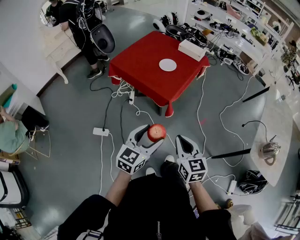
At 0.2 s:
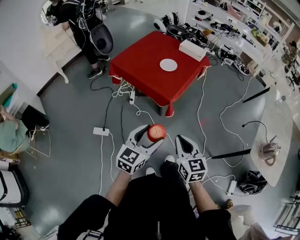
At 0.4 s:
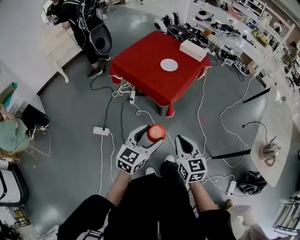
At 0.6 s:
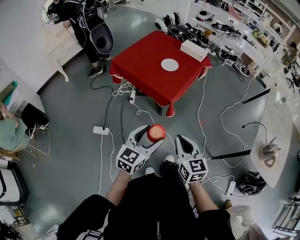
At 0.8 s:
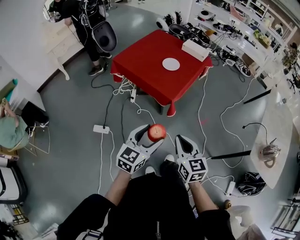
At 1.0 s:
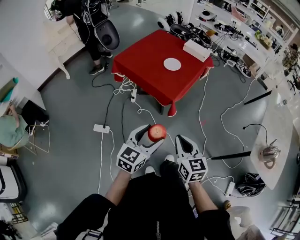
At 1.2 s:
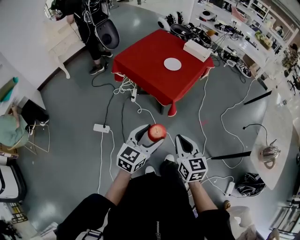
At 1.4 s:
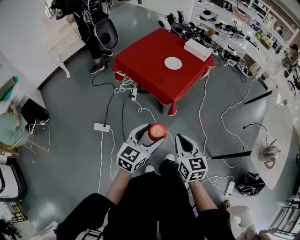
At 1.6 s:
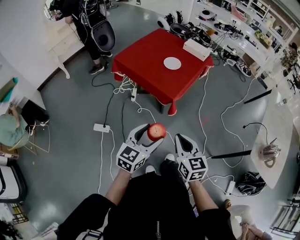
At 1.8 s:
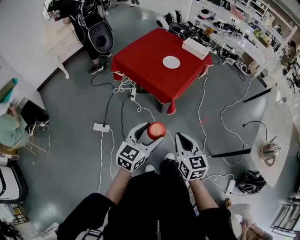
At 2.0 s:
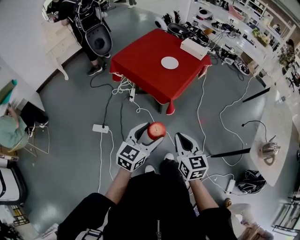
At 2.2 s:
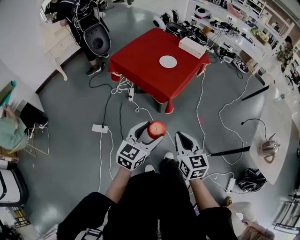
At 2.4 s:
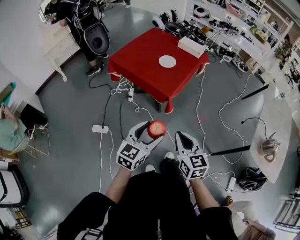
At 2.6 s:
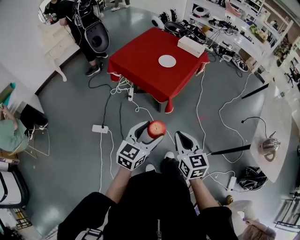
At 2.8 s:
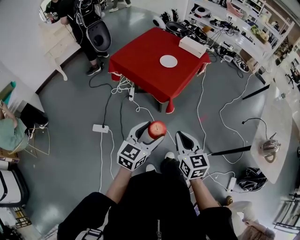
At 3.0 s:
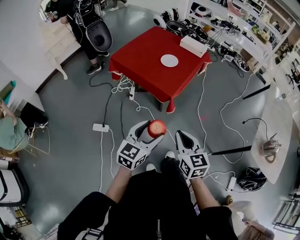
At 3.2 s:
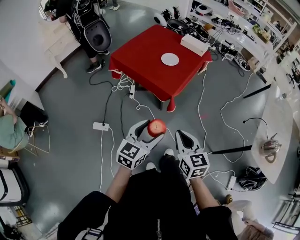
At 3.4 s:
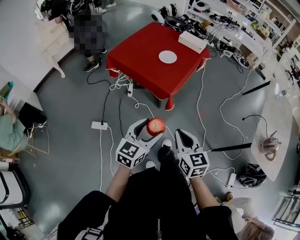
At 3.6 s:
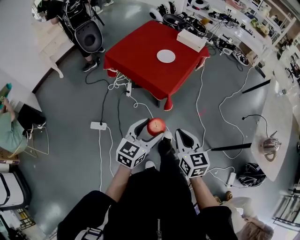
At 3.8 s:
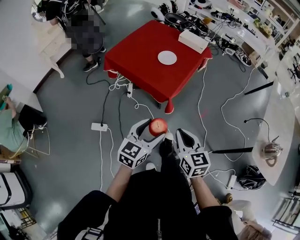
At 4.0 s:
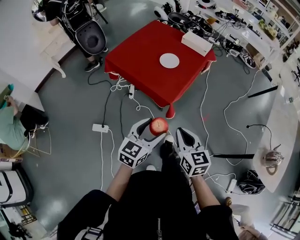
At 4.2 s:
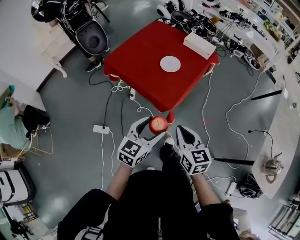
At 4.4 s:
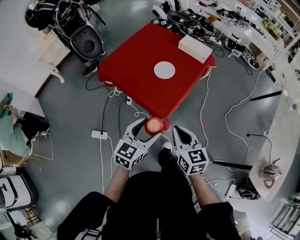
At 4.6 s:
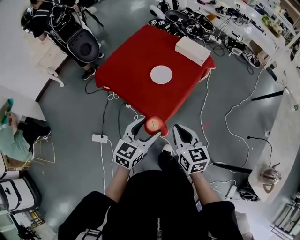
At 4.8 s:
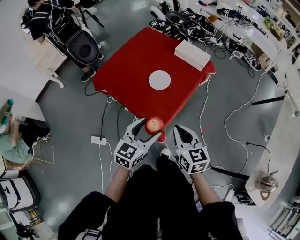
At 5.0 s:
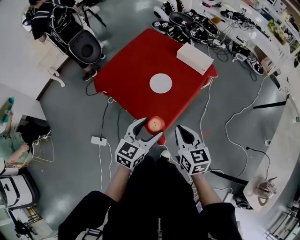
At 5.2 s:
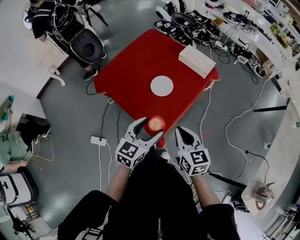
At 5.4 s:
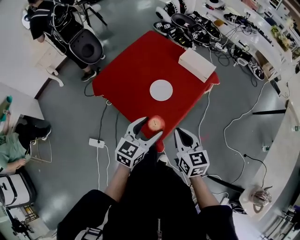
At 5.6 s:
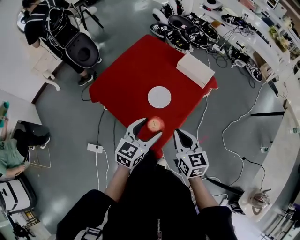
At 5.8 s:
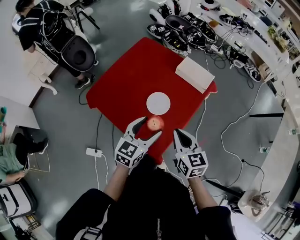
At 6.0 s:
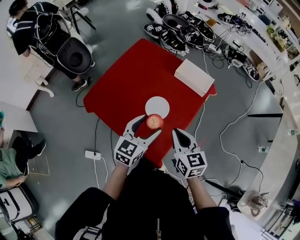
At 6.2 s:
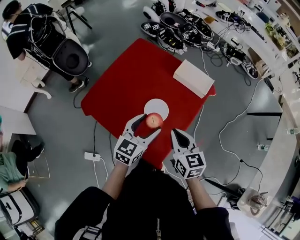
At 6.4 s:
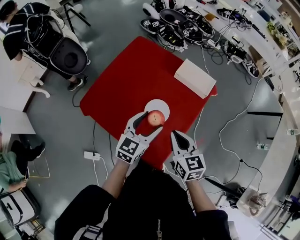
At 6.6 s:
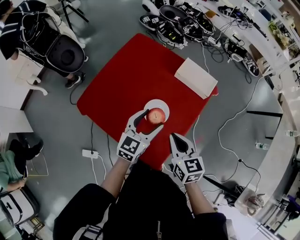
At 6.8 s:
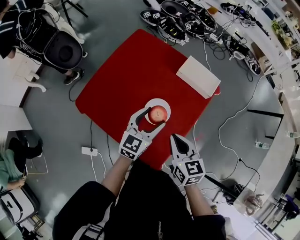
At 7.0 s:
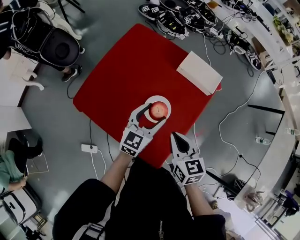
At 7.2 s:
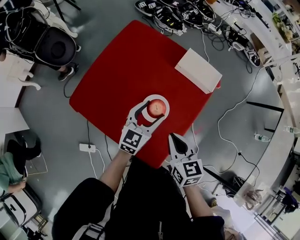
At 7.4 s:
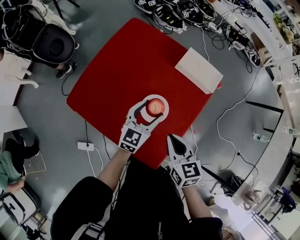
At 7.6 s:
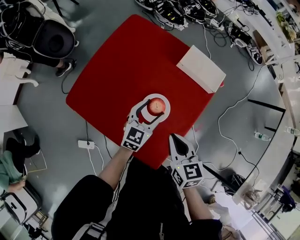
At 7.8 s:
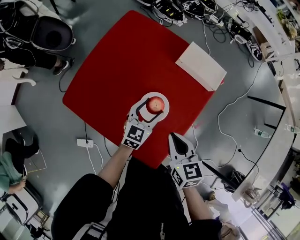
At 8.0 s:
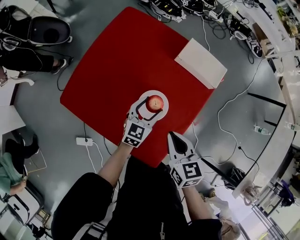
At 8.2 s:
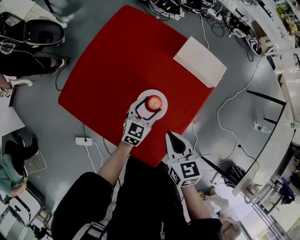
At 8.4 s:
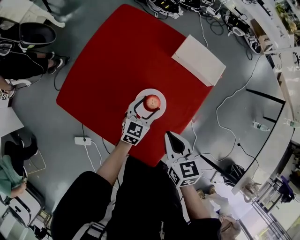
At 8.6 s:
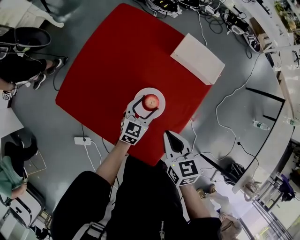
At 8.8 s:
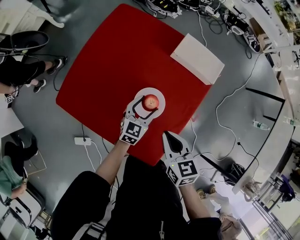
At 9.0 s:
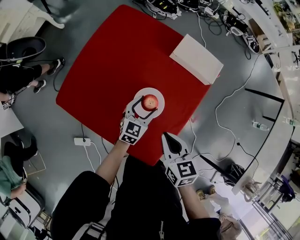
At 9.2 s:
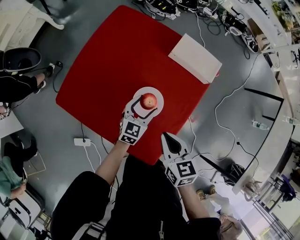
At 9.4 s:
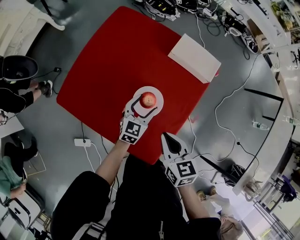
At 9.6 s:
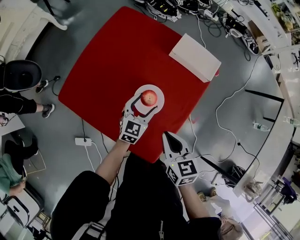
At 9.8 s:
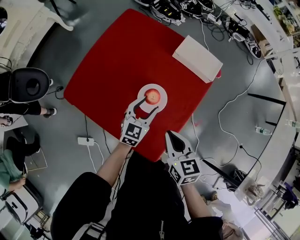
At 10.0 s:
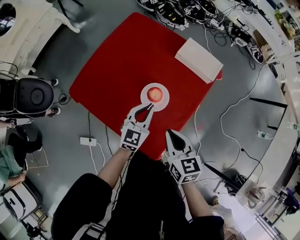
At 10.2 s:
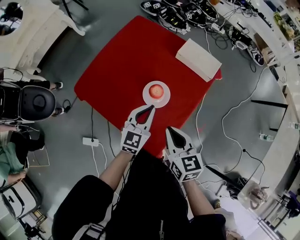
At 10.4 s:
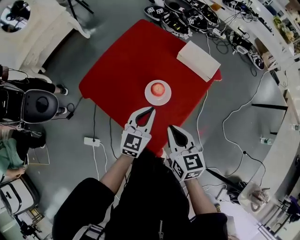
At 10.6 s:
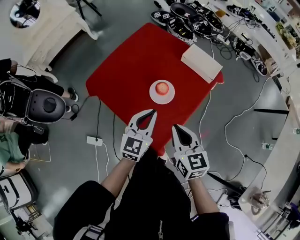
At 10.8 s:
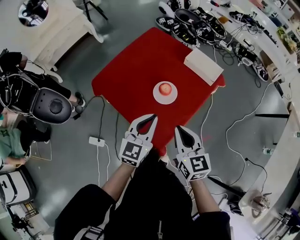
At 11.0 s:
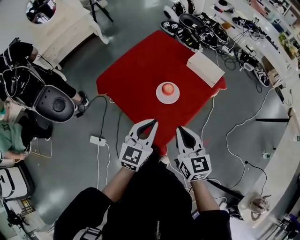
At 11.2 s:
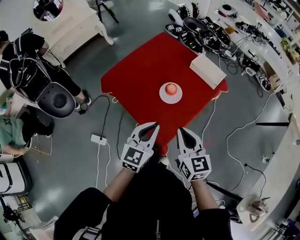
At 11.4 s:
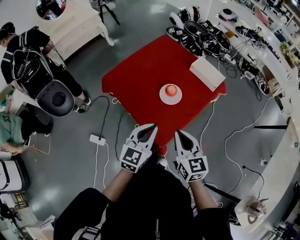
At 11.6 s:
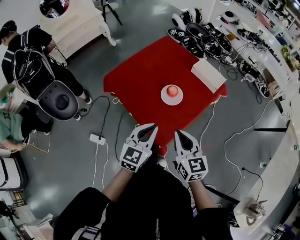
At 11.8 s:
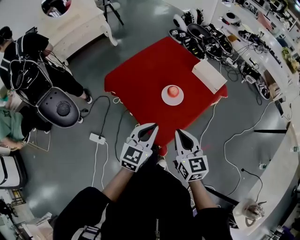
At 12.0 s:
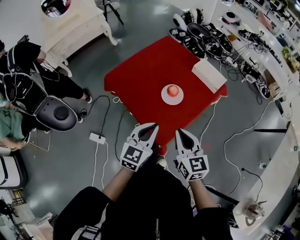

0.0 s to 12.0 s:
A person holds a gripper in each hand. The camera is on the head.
0.0 to 3.0 s: The grippers make only small movements.
3.0 to 4.4 s: Both grippers travel together forward, approximately 25 cm.
4.4 to 6.0 s: Both grippers travel together forward, about 30 cm.
6.0 to 7.6 s: The left gripper heads forward and downward, covering about 20 cm. Meanwhile the right gripper is displaced downward and forward by roughly 10 cm.
7.6 to 9.0 s: The left gripper heads downward, covering roughly 10 cm.
9.0 to 10.4 s: The left gripper shifts roughly 20 cm upward and backward, and closes up. The right gripper is displaced backward and upward by about 15 cm.
10.4 to 12.0 s: The two grippers go roughly 15 cm backward and upward.

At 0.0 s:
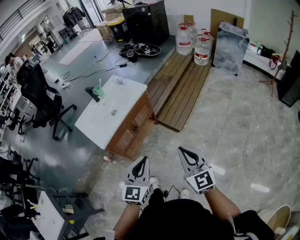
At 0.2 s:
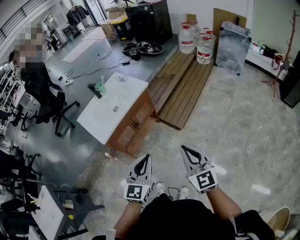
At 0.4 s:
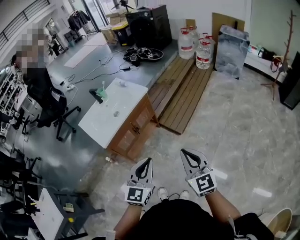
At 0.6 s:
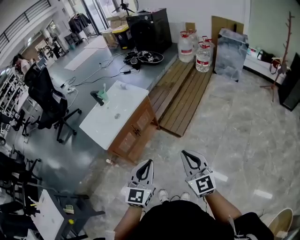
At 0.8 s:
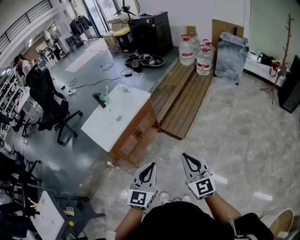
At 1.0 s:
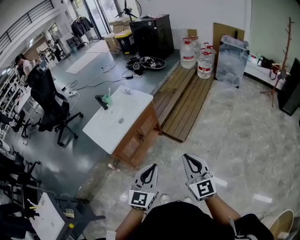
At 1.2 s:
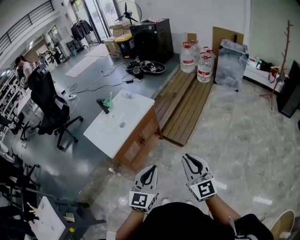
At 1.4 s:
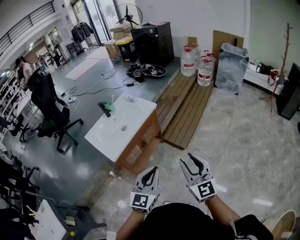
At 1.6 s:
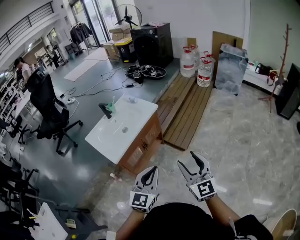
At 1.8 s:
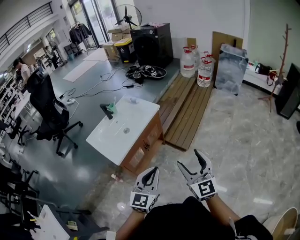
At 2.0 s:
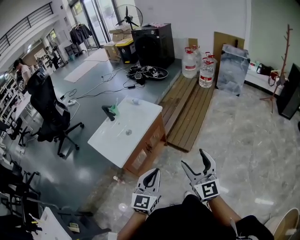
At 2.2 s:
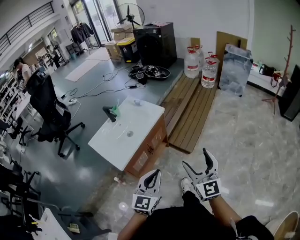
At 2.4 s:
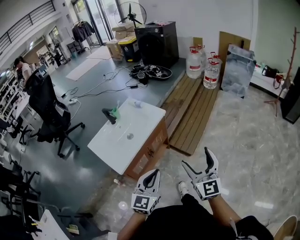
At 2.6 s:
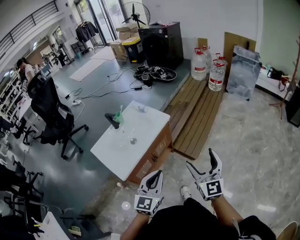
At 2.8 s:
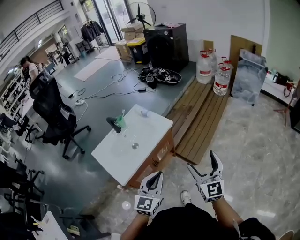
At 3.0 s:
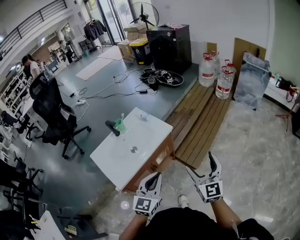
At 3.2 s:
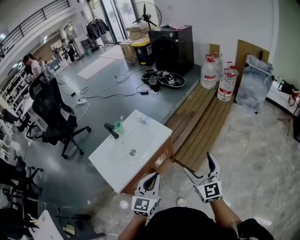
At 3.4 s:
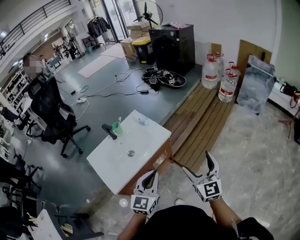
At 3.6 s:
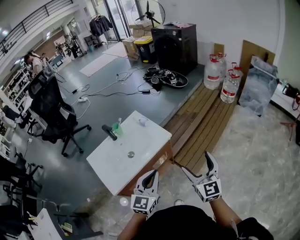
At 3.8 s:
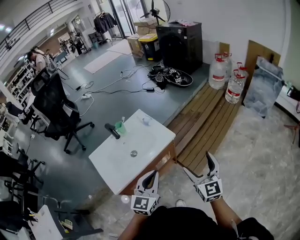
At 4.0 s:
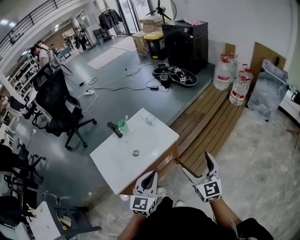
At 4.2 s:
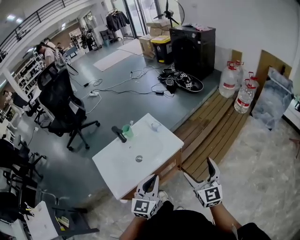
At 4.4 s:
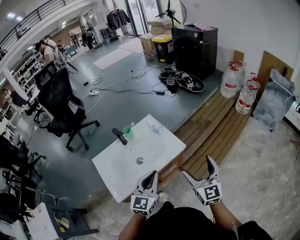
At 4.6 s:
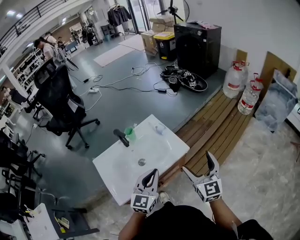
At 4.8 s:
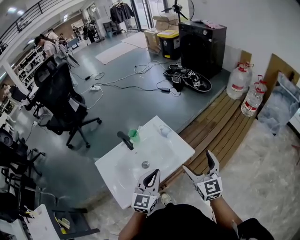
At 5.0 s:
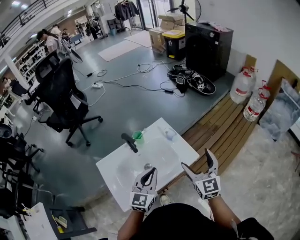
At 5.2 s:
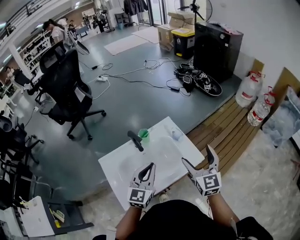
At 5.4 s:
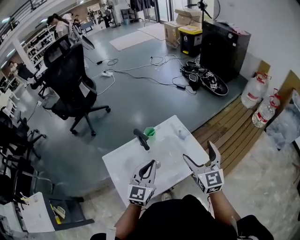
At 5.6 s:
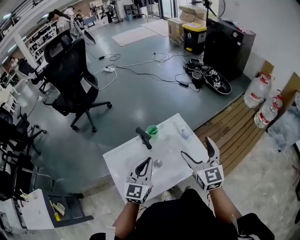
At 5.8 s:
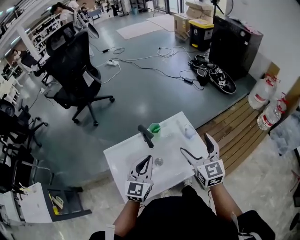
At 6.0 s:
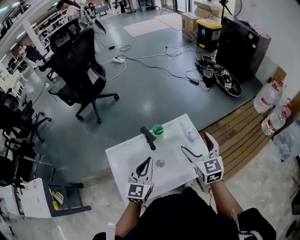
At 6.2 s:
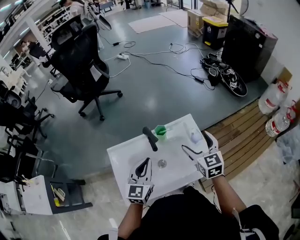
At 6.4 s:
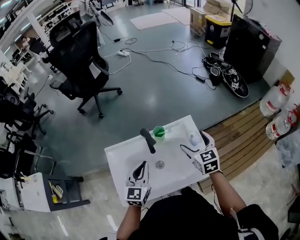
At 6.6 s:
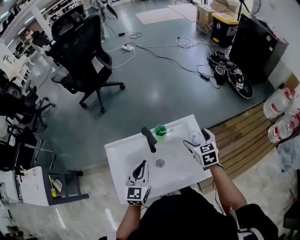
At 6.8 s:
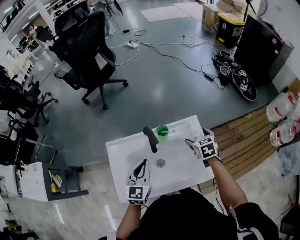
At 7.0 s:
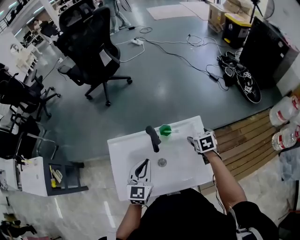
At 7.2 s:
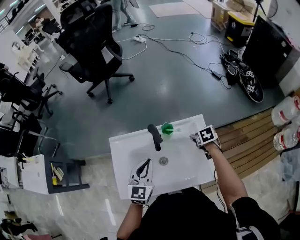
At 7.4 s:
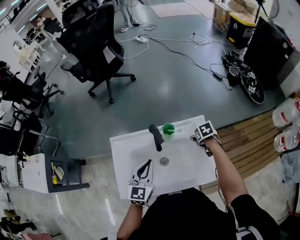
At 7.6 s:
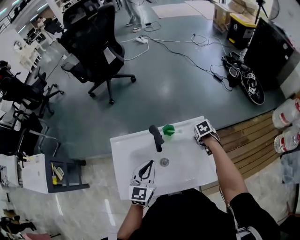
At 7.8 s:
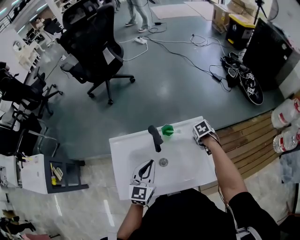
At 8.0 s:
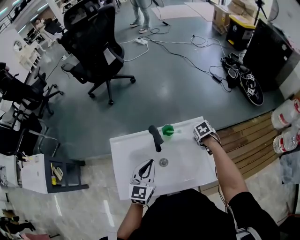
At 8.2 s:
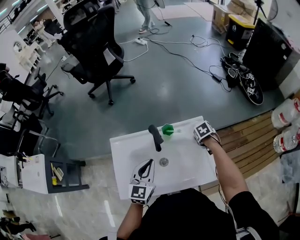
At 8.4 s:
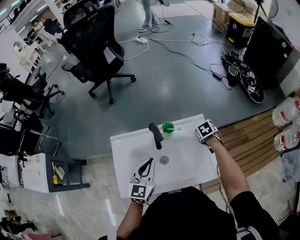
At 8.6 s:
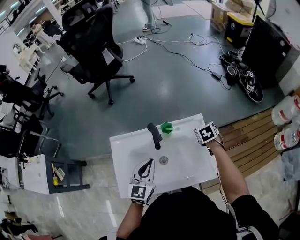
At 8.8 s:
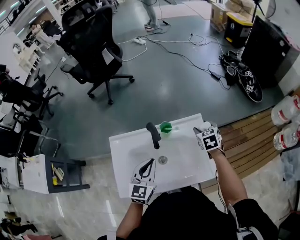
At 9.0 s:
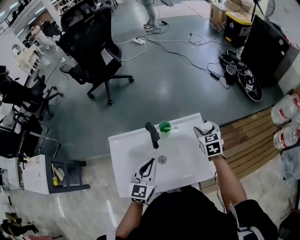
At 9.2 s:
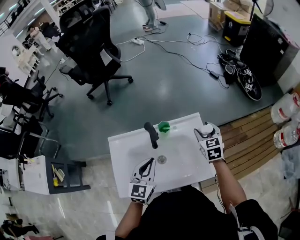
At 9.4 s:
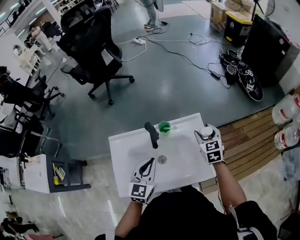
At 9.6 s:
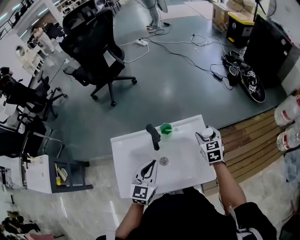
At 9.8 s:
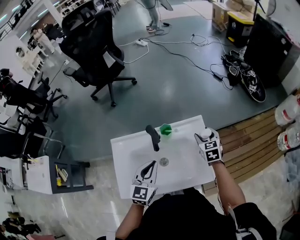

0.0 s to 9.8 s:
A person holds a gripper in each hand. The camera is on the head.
0.0 to 1.4 s: The left gripper shifts by about 5 cm; the right gripper is displaced upward by approximately 5 cm.
1.4 to 2.8 s: Both grippers move forward, roughly 25 cm. The right gripper opens up.
2.8 to 4.2 s: The grippers both shift forward by roughly 20 cm.
4.2 to 5.6 s: The two grippers go approximately 35 cm forward and to the left.
5.6 to 7.0 s: The right gripper is displaced forward and downward by approximately 35 cm, and tips its fingers downward by about 50 degrees; the left gripper is displaced forward and downward by approximately 10 cm, and swivels approximately 30 degrees.
7.0 to 8.4 s: The right gripper ends up about 5 cm from where it was, and closes up.
8.4 to 9.8 s: The right gripper goes about 10 cm upward, and points its fingers some 30 degrees further upward.

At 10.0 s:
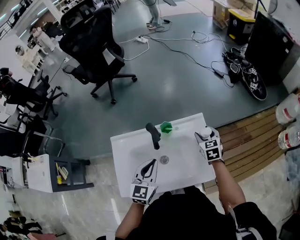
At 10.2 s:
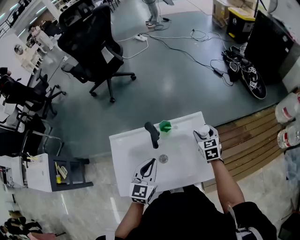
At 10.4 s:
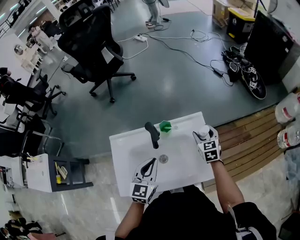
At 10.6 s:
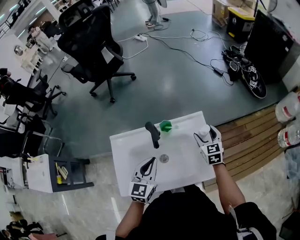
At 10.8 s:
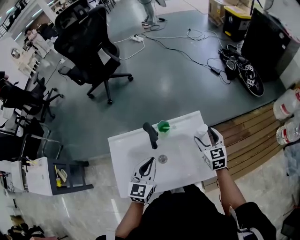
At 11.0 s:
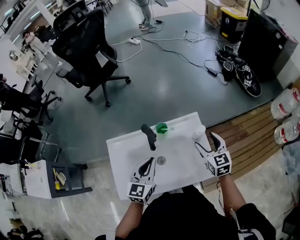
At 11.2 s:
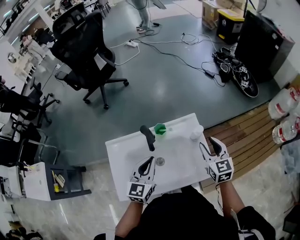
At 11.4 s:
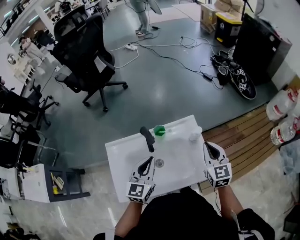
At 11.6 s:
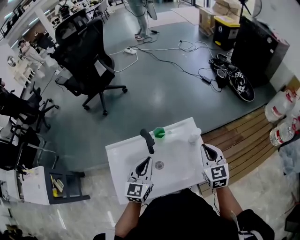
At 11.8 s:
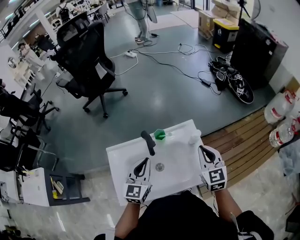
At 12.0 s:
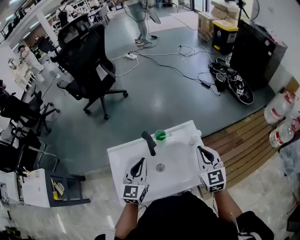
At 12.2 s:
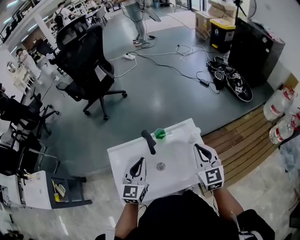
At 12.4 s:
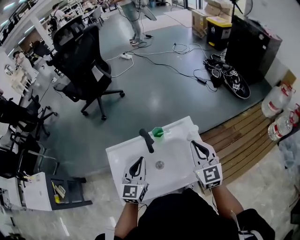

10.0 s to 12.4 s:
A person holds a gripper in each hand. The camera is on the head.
10.0 to 11.2 s: The right gripper travels upward and backward by some 15 cm.
11.2 to 12.4 s: The left gripper moves approximately 5 cm; the right gripper goes roughly 10 cm upward and to the left, and closes its fingers.
